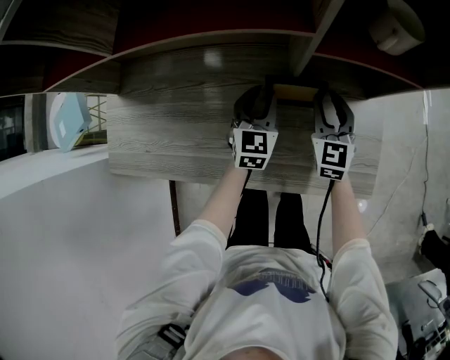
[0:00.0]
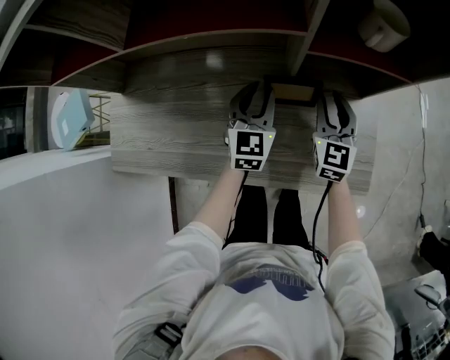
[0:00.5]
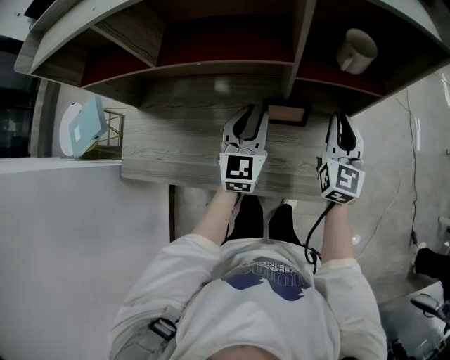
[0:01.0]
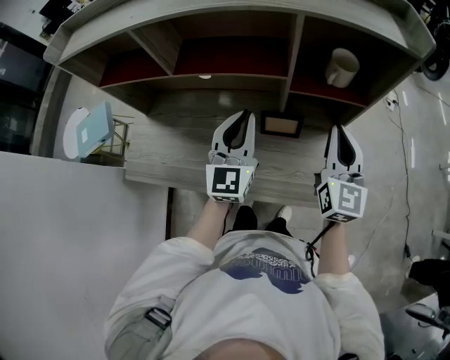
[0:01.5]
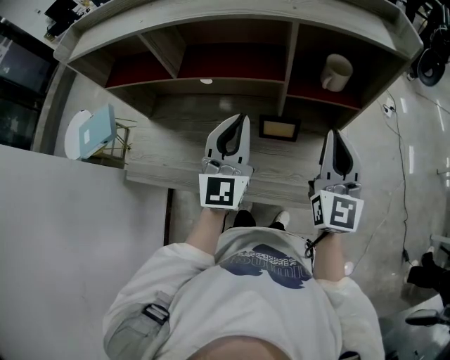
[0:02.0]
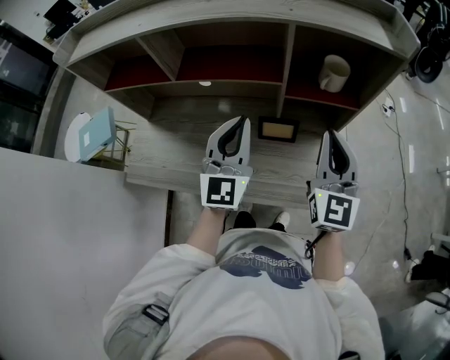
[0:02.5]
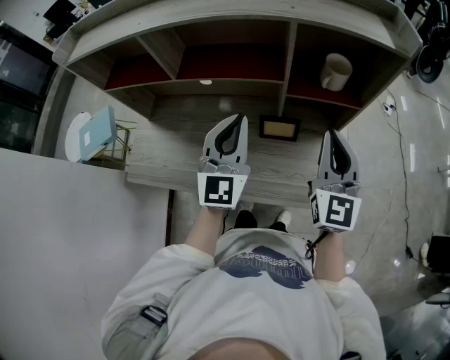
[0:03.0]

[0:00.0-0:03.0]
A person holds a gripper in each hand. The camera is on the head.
0:00.0 to 0:01.5: The two grippers go roughly 25 cm upward. The left gripper swivels approximately 30 degrees. The right gripper changes its angle by some 20 degrees, and closes up.
0:01.5 to 0:03.0: The right gripper moves some 5 cm. The left gripper goes some 5 cm upward.

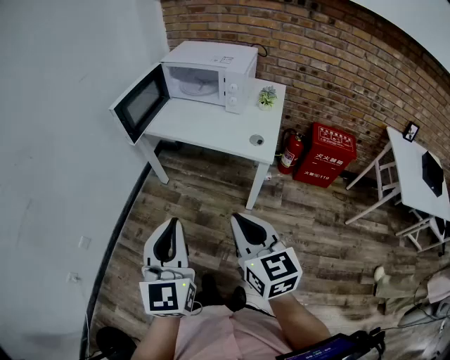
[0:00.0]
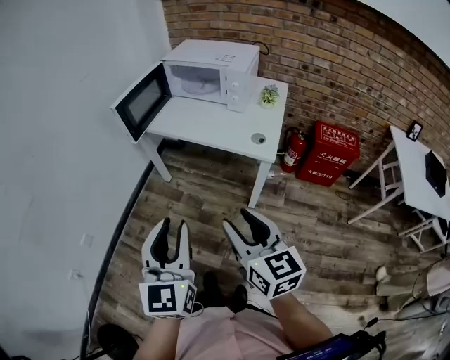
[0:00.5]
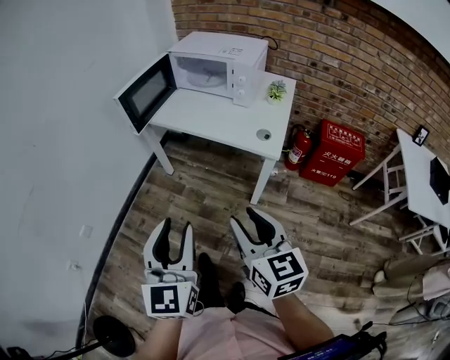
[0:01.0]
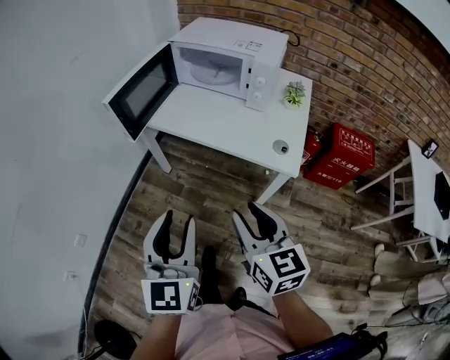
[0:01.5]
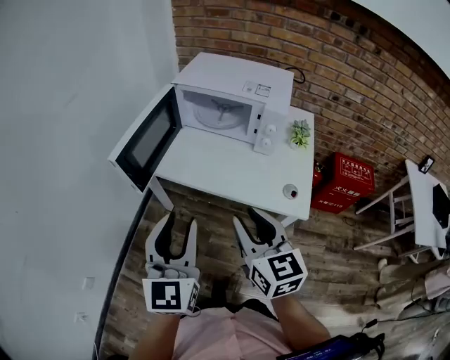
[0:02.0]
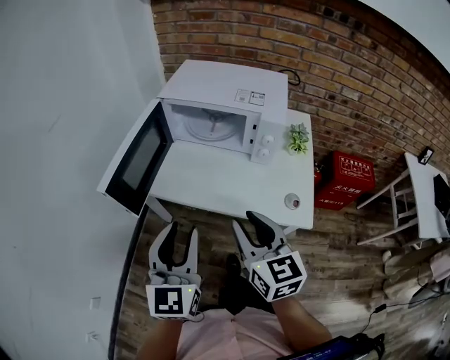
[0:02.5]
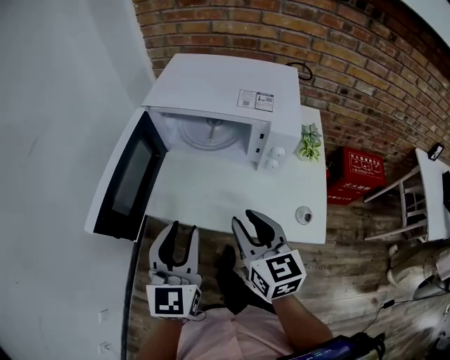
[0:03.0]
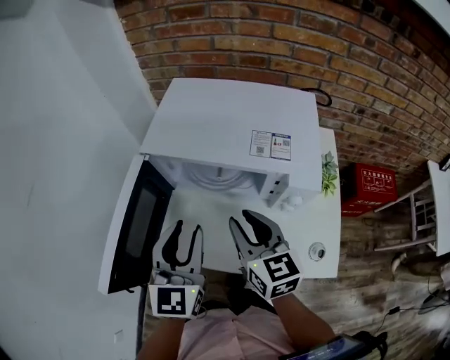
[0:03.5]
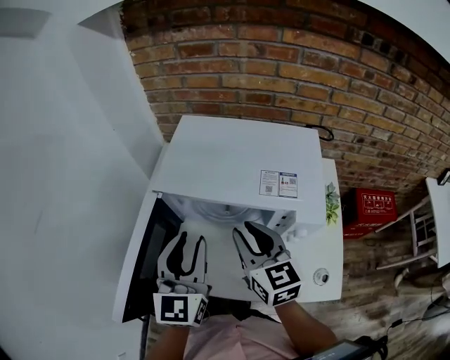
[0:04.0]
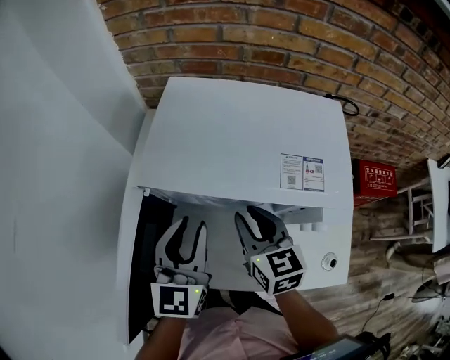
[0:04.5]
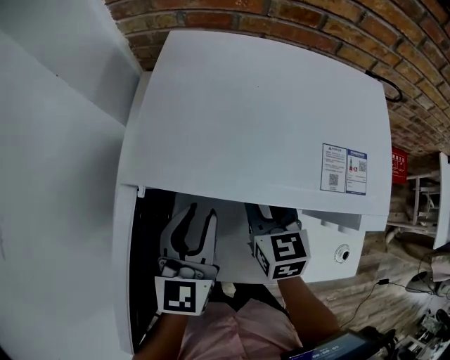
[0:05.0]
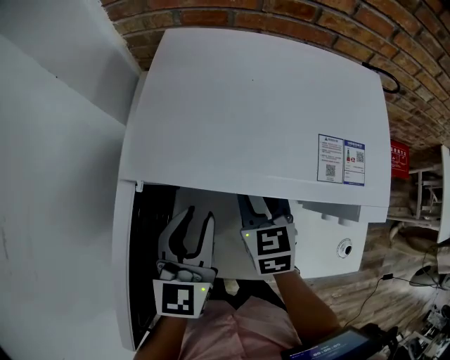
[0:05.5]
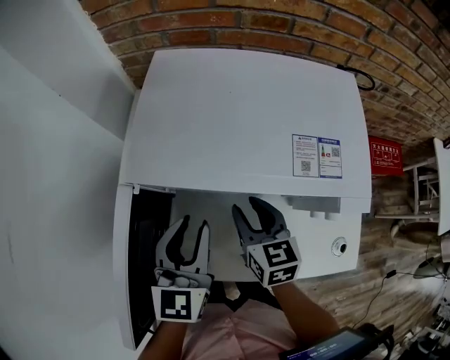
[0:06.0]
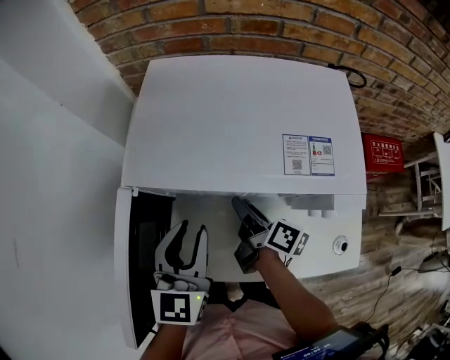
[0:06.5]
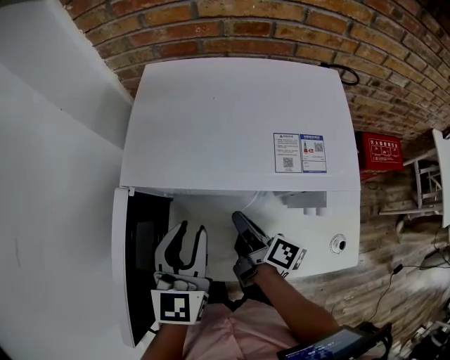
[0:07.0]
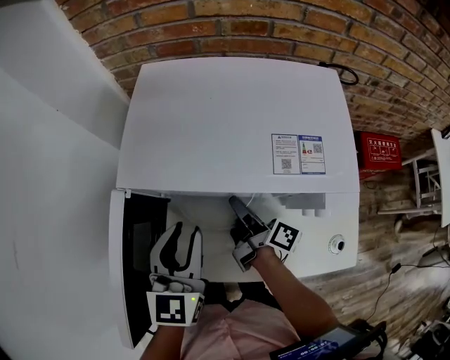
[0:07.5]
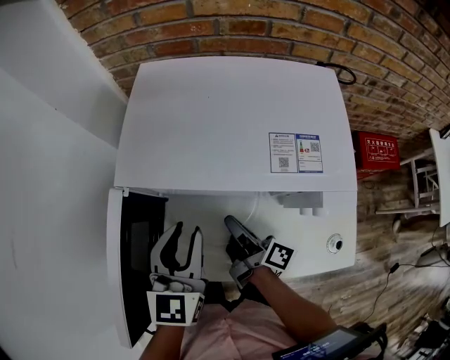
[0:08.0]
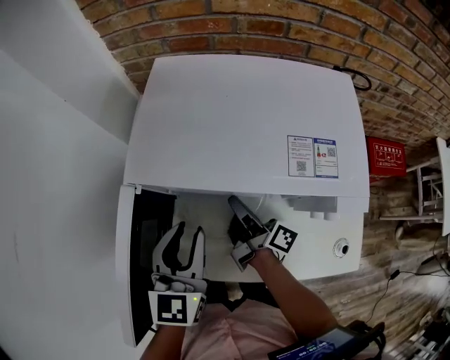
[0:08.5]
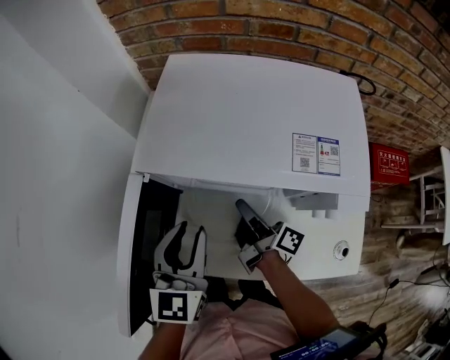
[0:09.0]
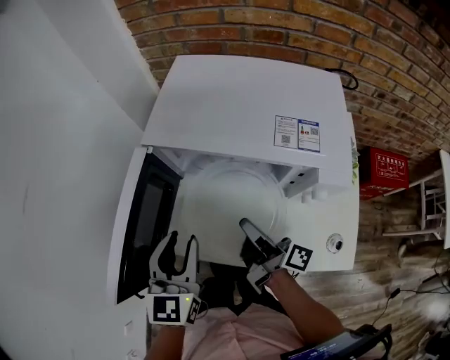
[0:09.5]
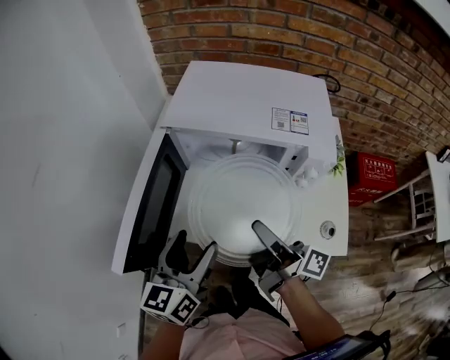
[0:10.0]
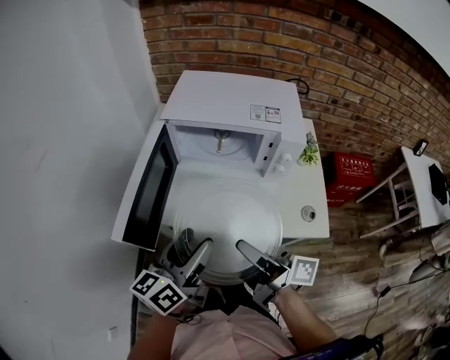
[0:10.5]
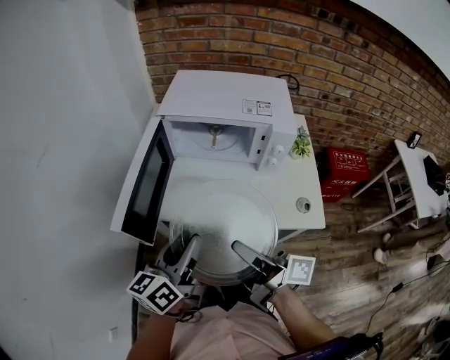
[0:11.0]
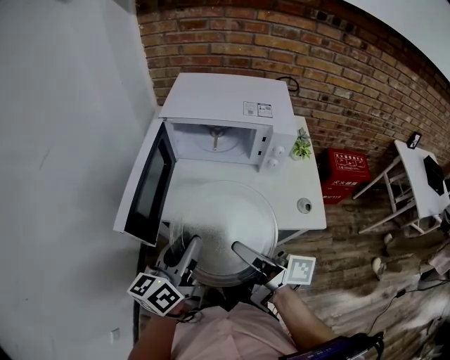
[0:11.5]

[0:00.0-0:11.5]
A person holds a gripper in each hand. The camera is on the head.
0:00.0 to 0:02.0: Both grippers travel together forward, approximately 30 cm. The left gripper opens its fingers. Meanwhile the right gripper opens.
0:02.0 to 0:04.0: Both grippers travel together forward, approximately 35 cm.
0:04.0 to 0:06.0: The grippers both shift downward by some 10 cm. The right gripper swivels some 20 degrees.
0:06.0 to 0:07.5: The right gripper rolls clockwise, seen from behind, by about 60 degrees.
0:07.5 to 0:09.5: The left gripper travels backward by approximately 10 cm; the right gripper swings forward and backward, some 10 cm each way, with 2 reversals, and closes.
0:09.5 to 0:11.5: The right gripper shifts some 25 cm backward and upward, while the left gripper goes approximately 15 cm backward, turns by approximately 40 degrees, and opens, then closes again.

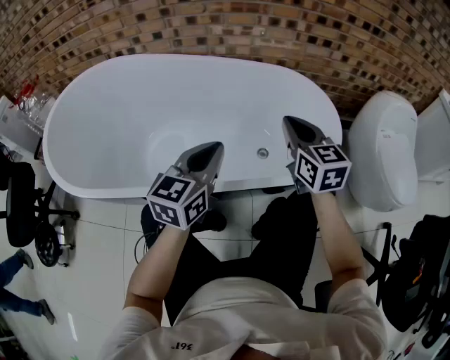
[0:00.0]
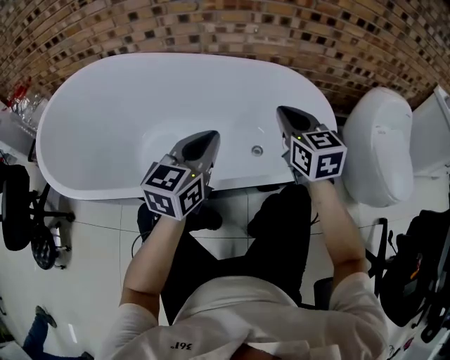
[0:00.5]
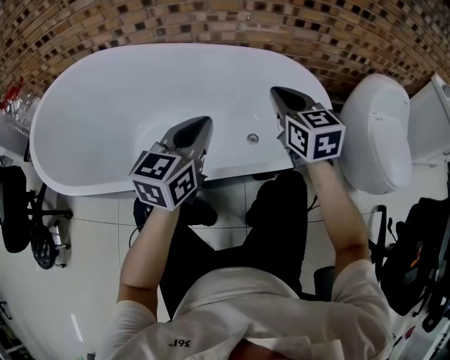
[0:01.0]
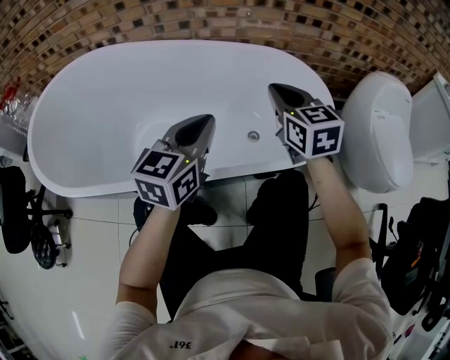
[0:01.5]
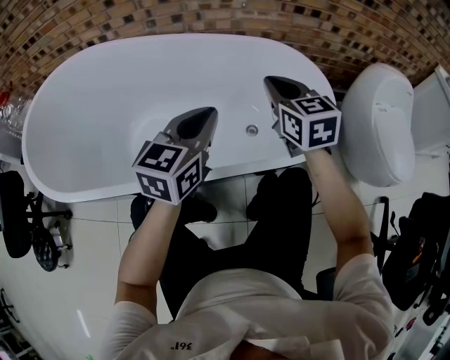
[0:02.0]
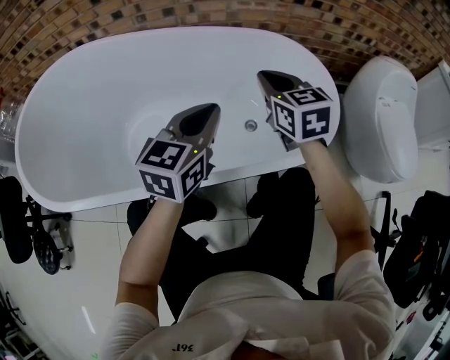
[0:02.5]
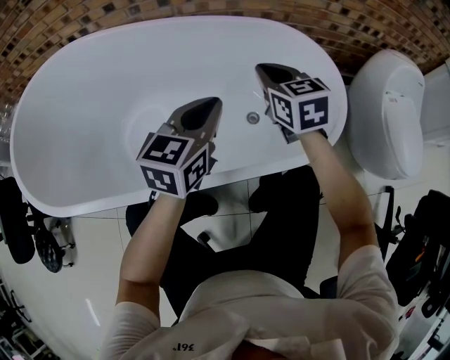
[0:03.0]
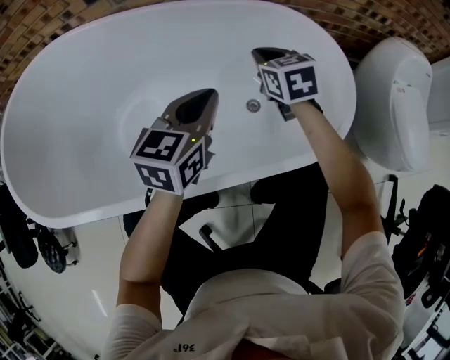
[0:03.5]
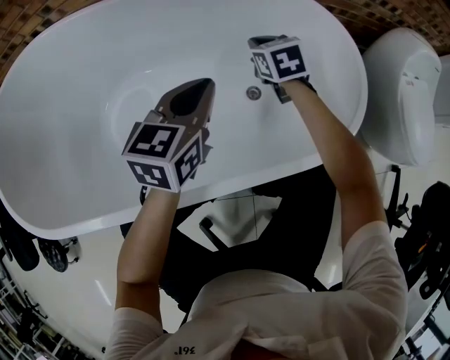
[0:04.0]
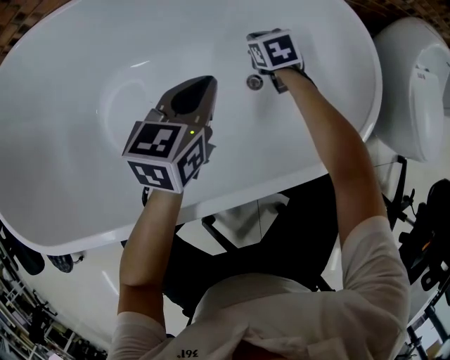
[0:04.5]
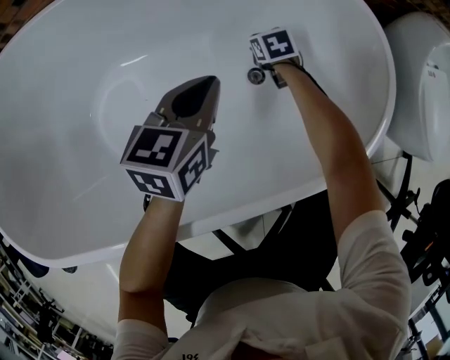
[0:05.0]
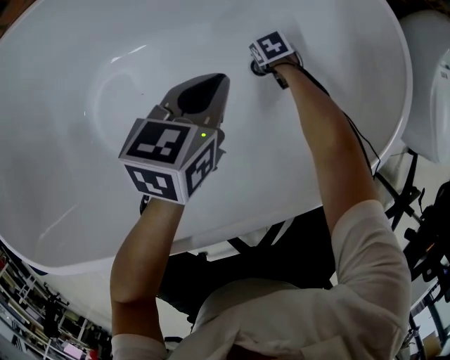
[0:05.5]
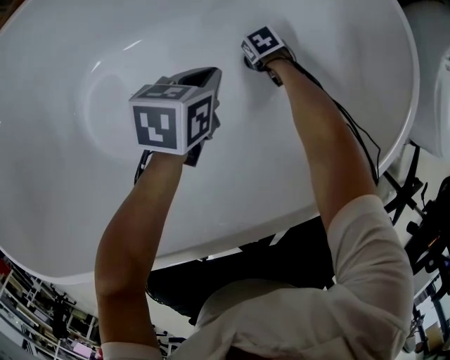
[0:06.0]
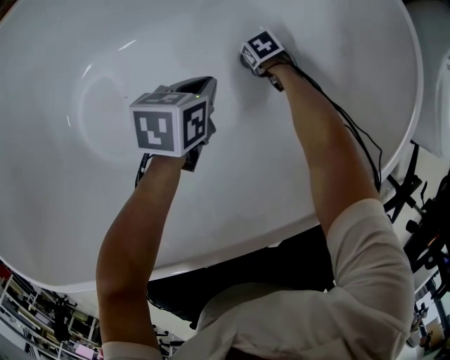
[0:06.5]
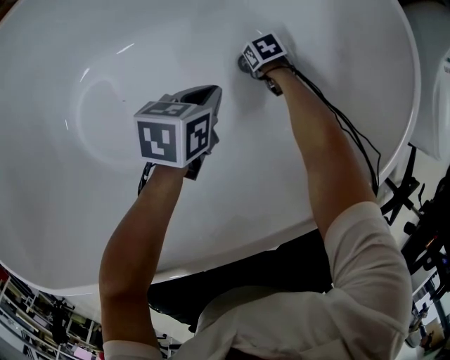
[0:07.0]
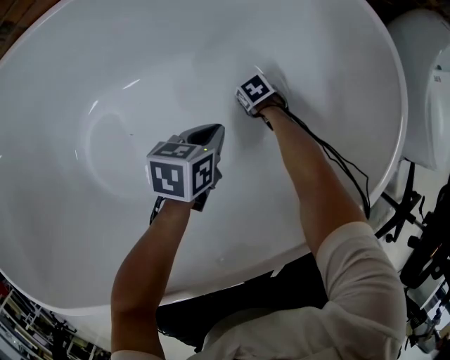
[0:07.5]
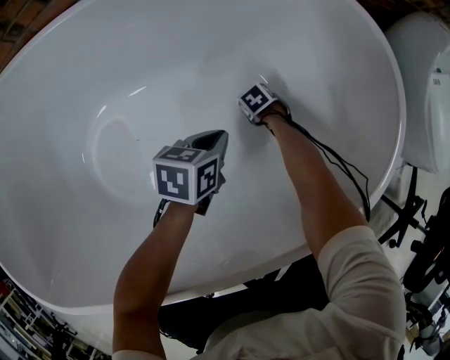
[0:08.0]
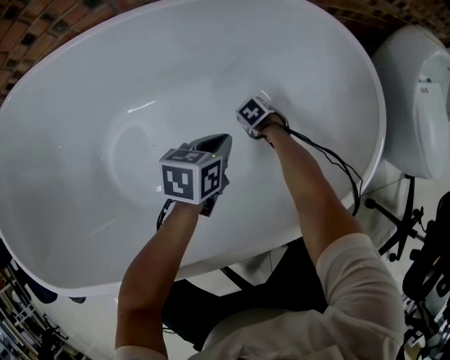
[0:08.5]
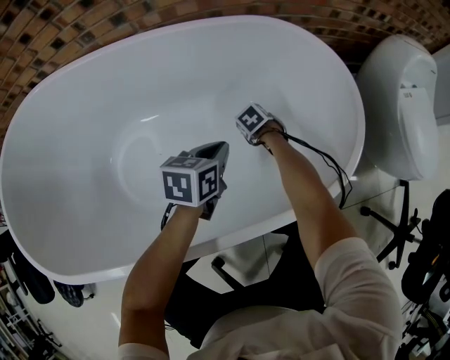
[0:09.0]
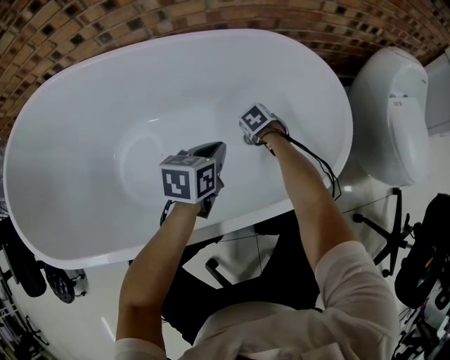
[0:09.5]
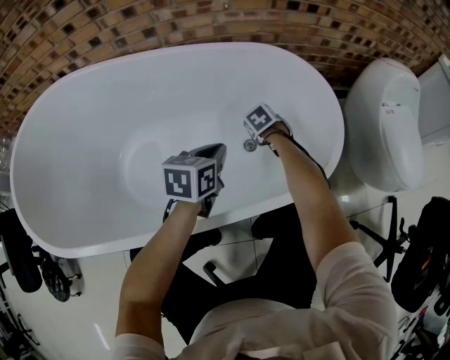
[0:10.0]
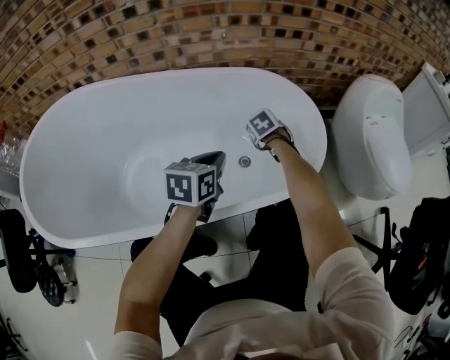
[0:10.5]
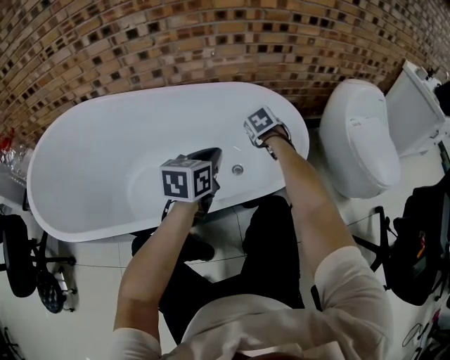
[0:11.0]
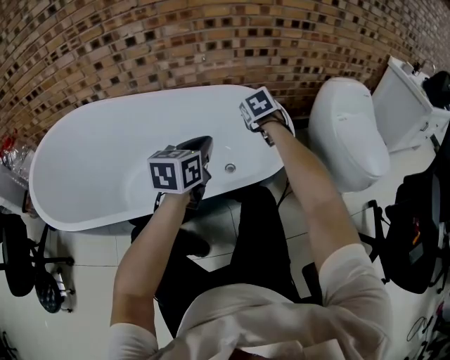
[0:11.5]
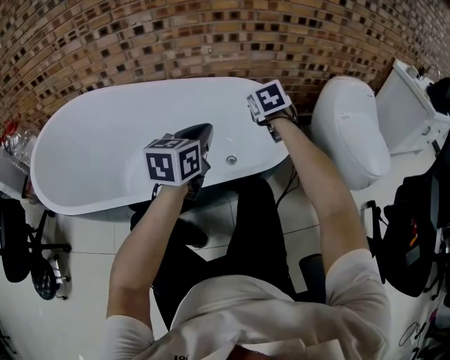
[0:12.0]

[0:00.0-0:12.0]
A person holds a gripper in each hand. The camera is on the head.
0:00.0 to 0:02.0: The left gripper moves roughly 5 cm. The right gripper shifts about 5 cm forward.
0:02.0 to 0:04.0: The left gripper shifts about 15 cm downward and forward; the right gripper travels downward and forward by about 30 cm, and changes its angle by about 20 degrees.
0:04.0 to 0:06.0: The left gripper goes roughly 20 cm downward, and turns by some 30 degrees. The right gripper is displaced downward by some 35 cm, and tips its fingers downward by some 30 degrees.
0:06.0 to 0:08.0: The grippers move only a little.
0:08.0 to 0:10.0: The grippers both shift upward by about 20 cm.
0:10.0 to 0:12.0: The right gripper goes approximately 35 cm upward, and angles its fingers upward, by roughly 30 degrees; the left gripper travels upward and backward by about 25 cm, and swivels some 20 degrees.
